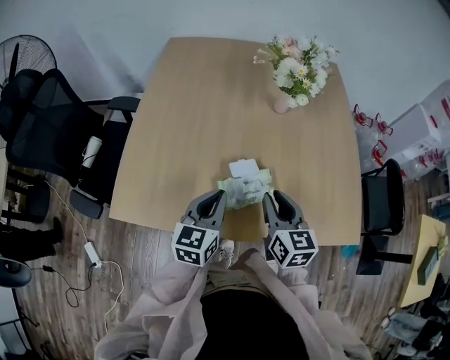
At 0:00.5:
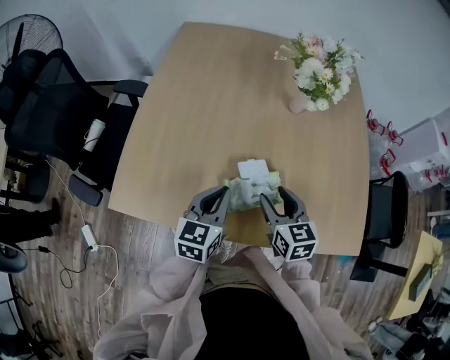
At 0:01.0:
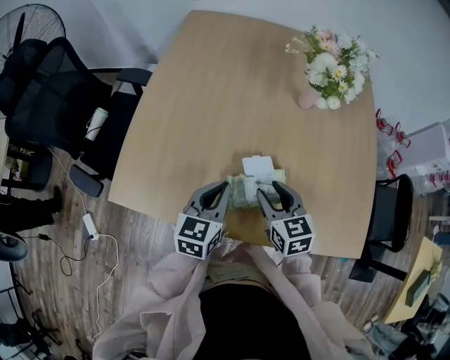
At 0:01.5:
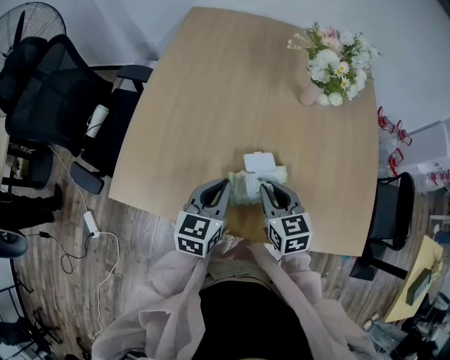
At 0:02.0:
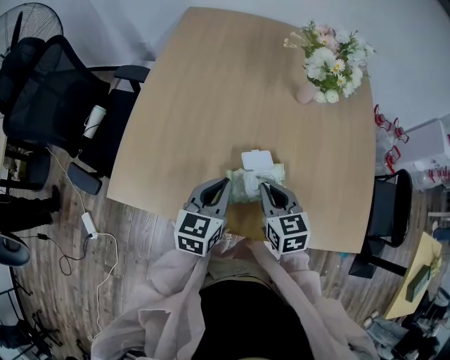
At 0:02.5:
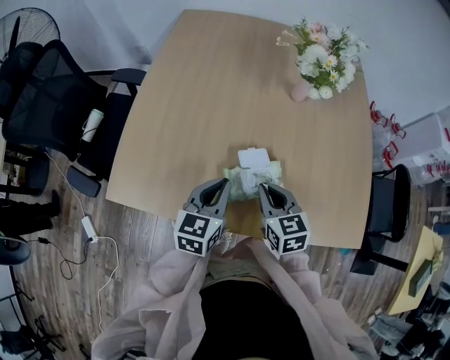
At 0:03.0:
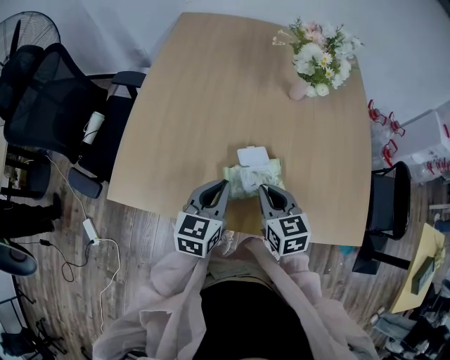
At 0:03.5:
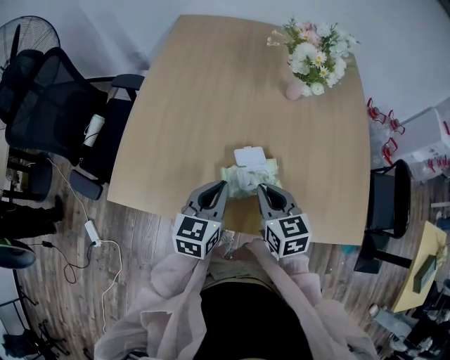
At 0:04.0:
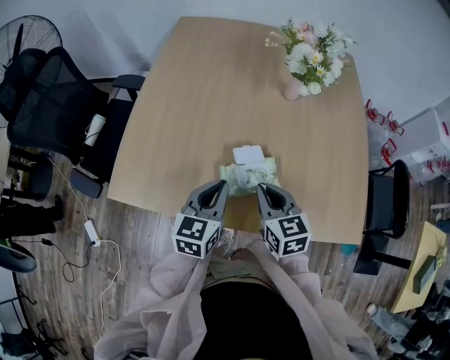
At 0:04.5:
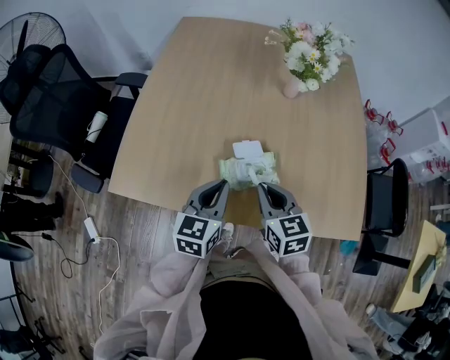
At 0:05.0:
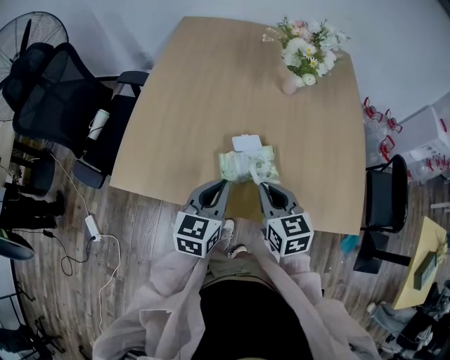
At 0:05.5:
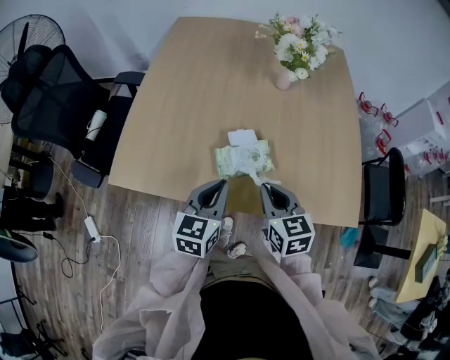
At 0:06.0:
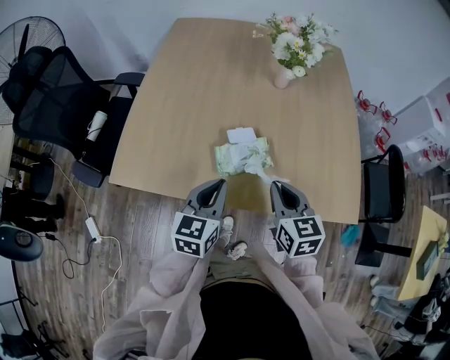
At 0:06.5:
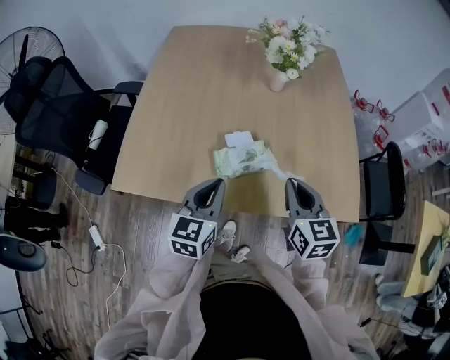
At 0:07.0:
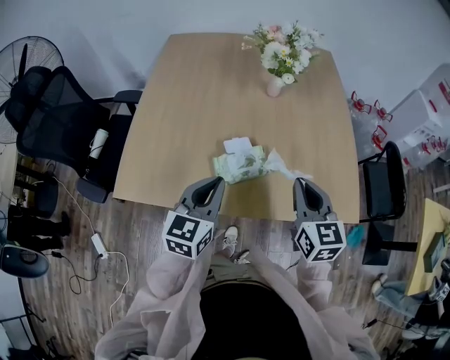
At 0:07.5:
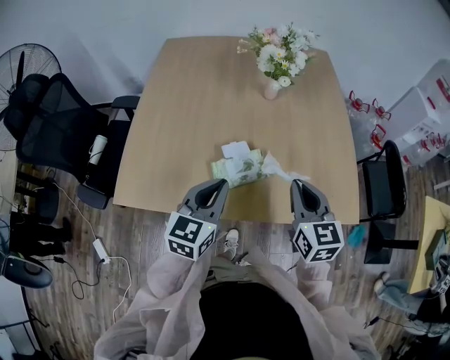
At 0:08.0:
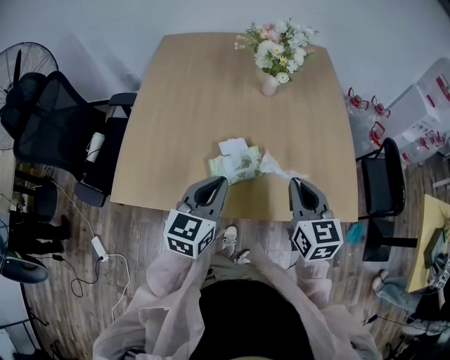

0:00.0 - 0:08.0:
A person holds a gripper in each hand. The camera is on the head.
0:00.0 - 0:02.0: The right gripper heads downward, covering some 5 cm, turns by about 20 degrees, and opens and closes again.
0:02.0 - 0:04.0: The grippers move only a little.
0:04.0 - 0:06.0: The left gripper is displaced backward by some 5 cm. Meanwhile the right gripper goes some 10 cm backward and to the right.
0:06.0 - 0:08.0: The right gripper moves upward and to the right, roughly 10 cm, while the left gripper heads upward, covering some 5 cm.

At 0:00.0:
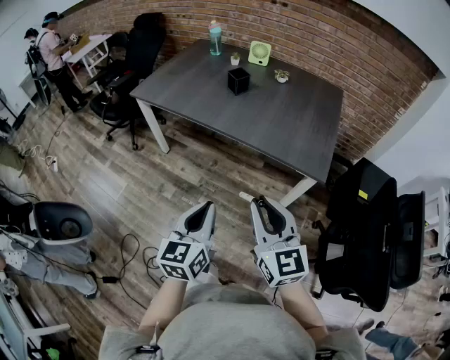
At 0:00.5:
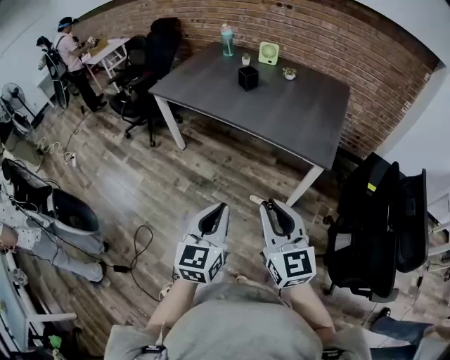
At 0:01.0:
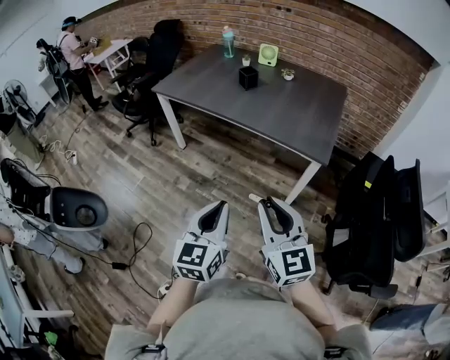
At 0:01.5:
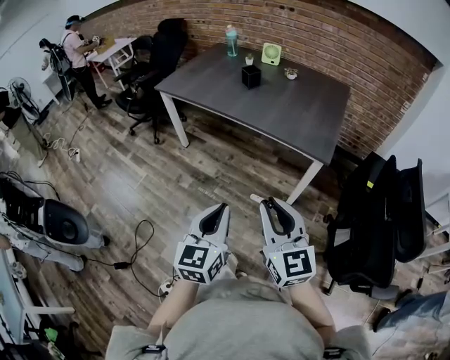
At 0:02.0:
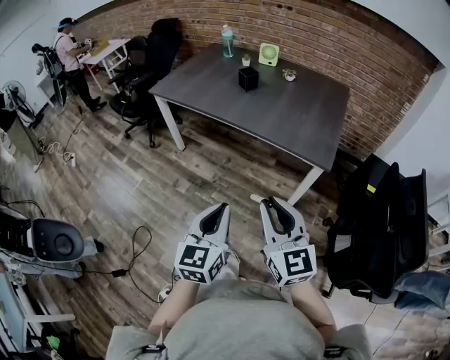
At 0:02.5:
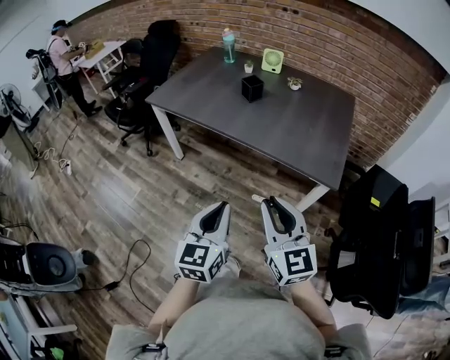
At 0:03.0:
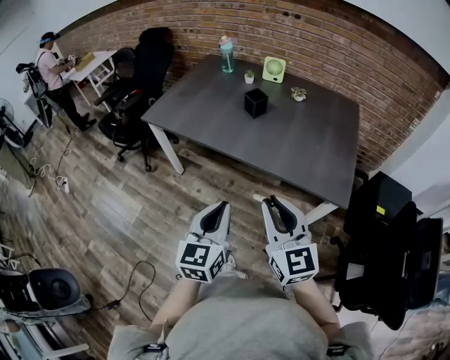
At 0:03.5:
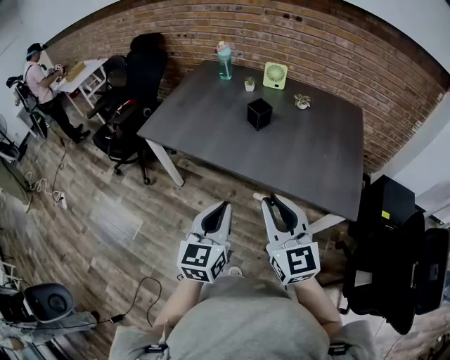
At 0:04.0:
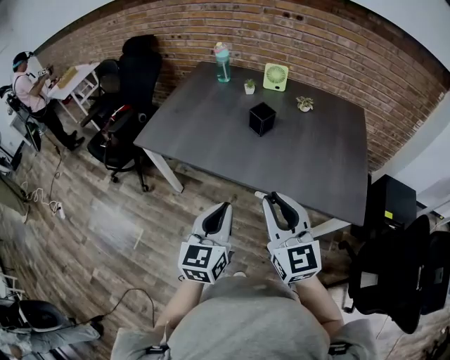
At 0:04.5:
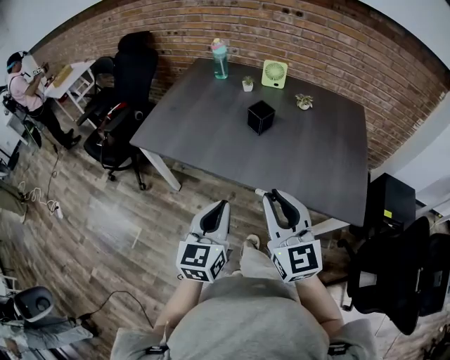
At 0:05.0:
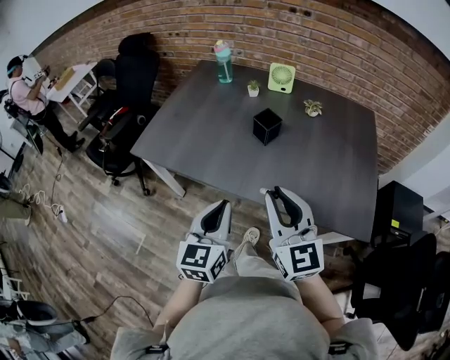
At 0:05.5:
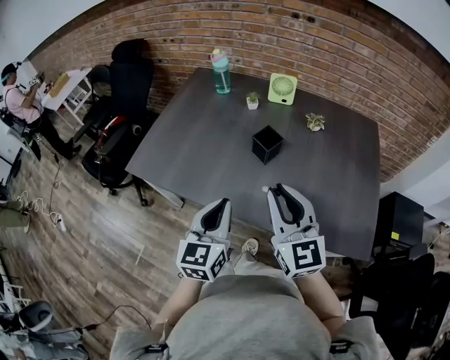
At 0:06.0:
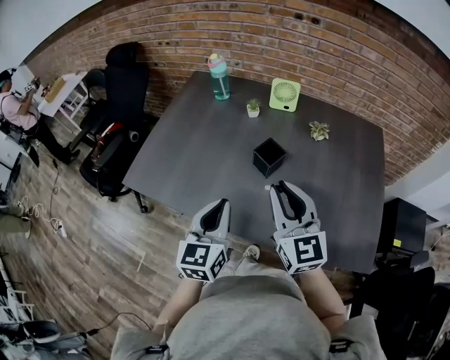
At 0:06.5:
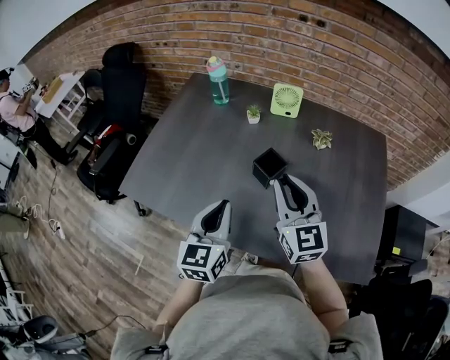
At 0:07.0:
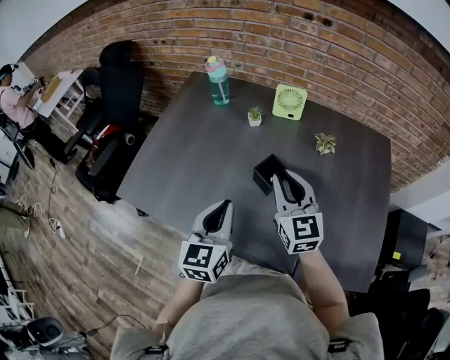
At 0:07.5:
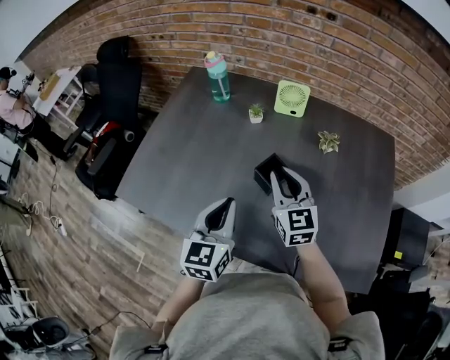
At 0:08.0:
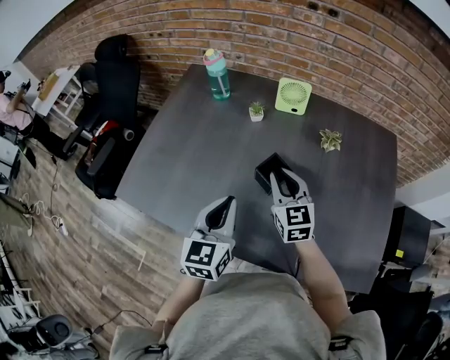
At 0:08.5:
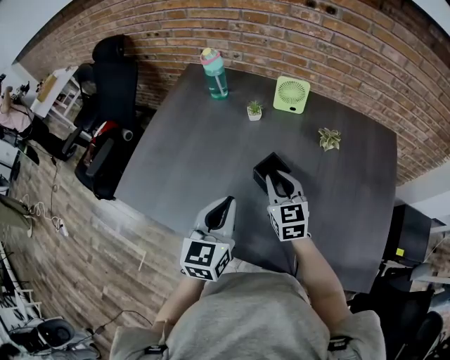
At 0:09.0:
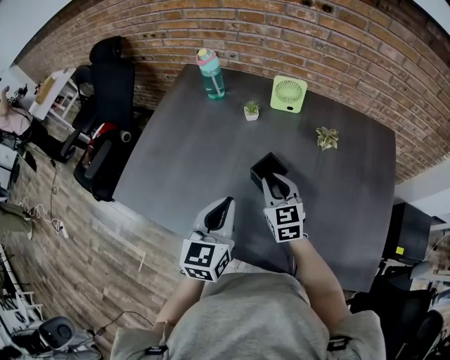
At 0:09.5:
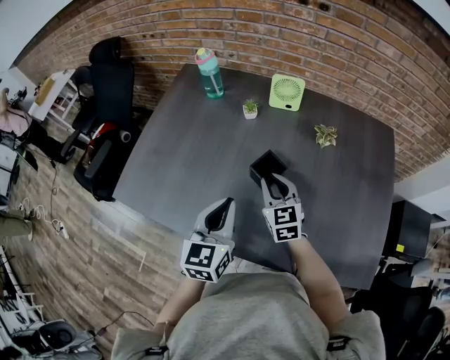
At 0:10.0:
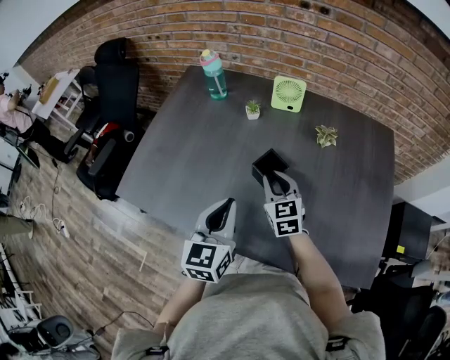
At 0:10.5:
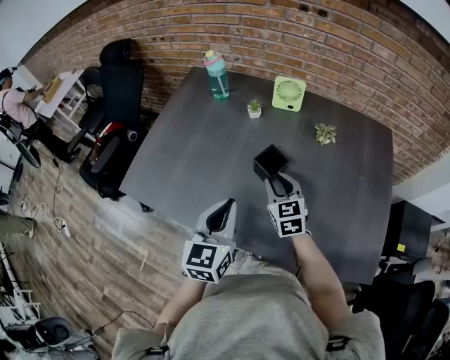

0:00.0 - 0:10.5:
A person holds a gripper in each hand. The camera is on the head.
0:00.0 - 0:02.0: Both grippers move backward, approximately 10 cm.
0:02.0 - 0:04.0: The right gripper travels forward and to the left by about 40 cm, while the left gripper goes some 35 cm forward.
0:04.0 - 0:06.5: The two grippers go some 35 cm forward.
0:06.5 - 0:08.5: The left gripper moves forward, some 5 cm, while the right gripper is displaced downward and forward by some 20 cm.
0:08.5 - 0:10.5: The left gripper shifts some 5 cm backward.

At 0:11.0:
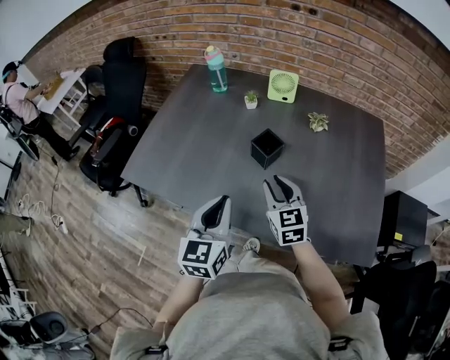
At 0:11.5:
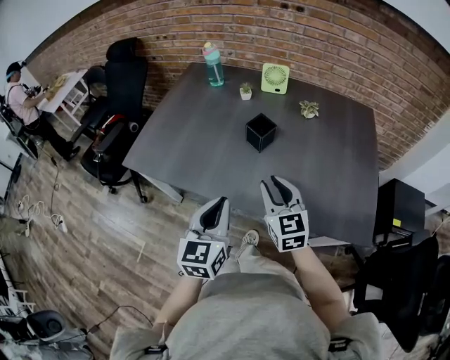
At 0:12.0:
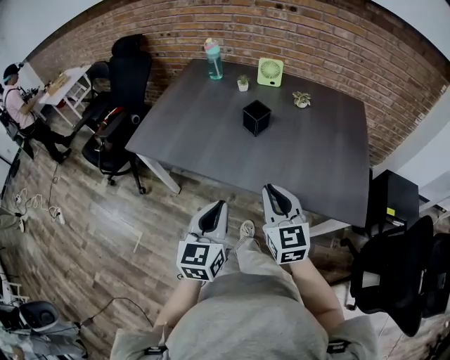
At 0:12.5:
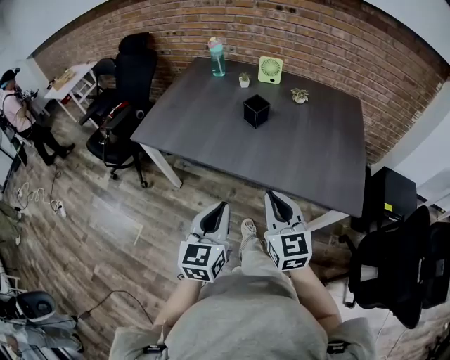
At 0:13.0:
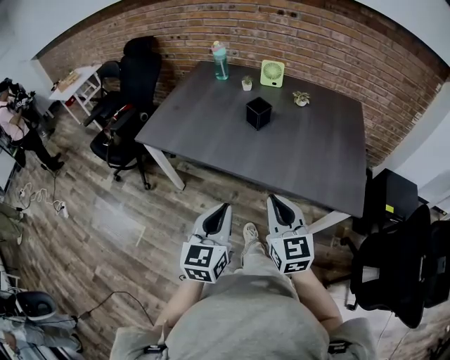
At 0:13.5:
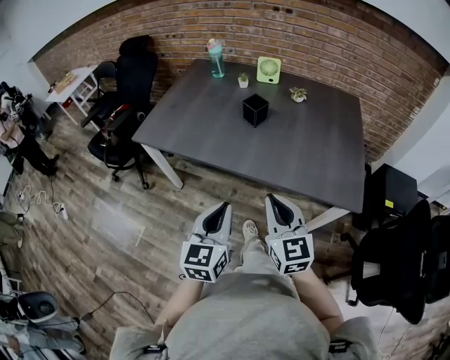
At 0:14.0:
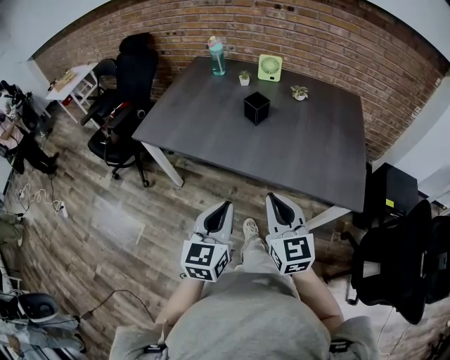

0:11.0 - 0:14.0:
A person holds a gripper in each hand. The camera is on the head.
0:11.0 - 0:12.5: Both grippers travel together backward, about 30 cm. The right gripper closes.
0:12.5 - 0:14.0: The grippers make only small movements.

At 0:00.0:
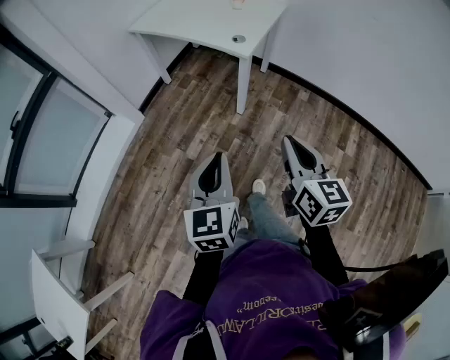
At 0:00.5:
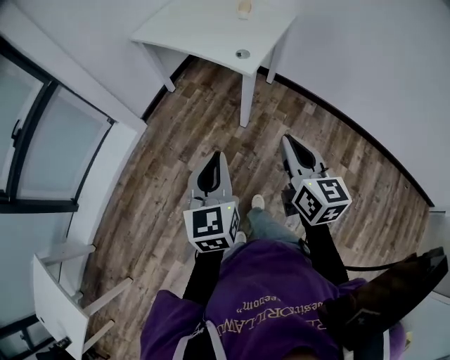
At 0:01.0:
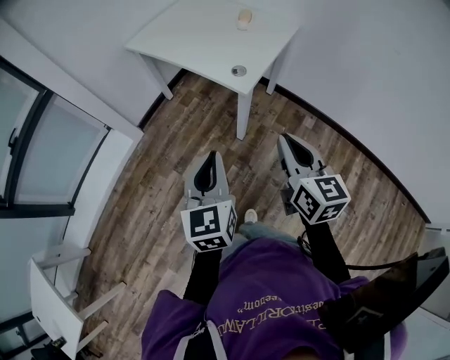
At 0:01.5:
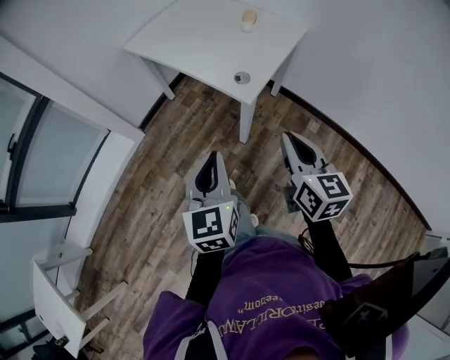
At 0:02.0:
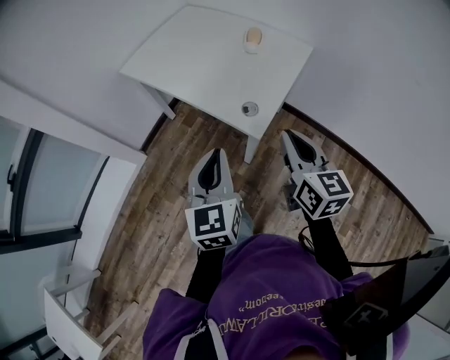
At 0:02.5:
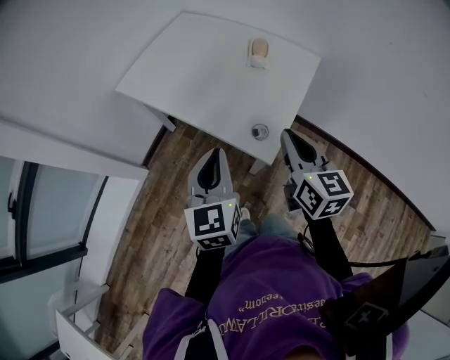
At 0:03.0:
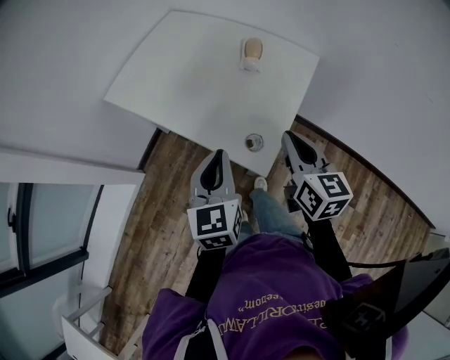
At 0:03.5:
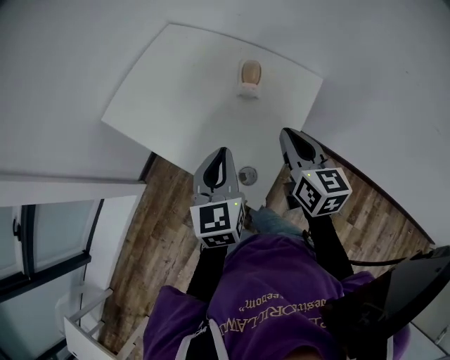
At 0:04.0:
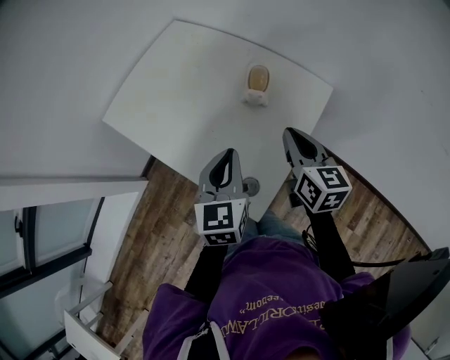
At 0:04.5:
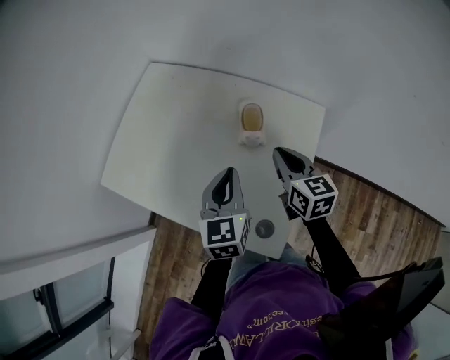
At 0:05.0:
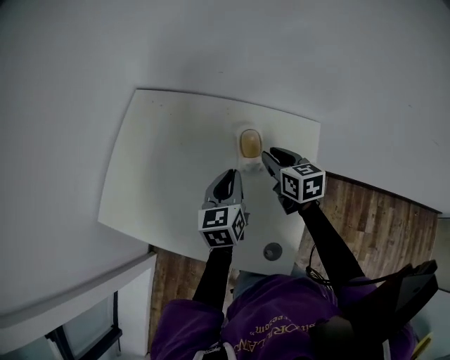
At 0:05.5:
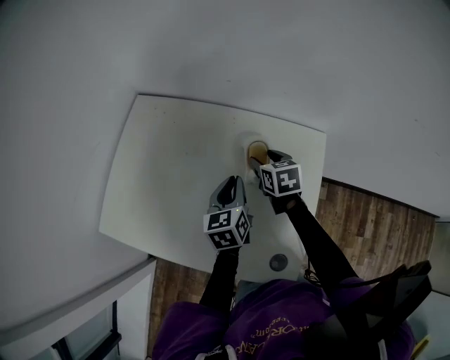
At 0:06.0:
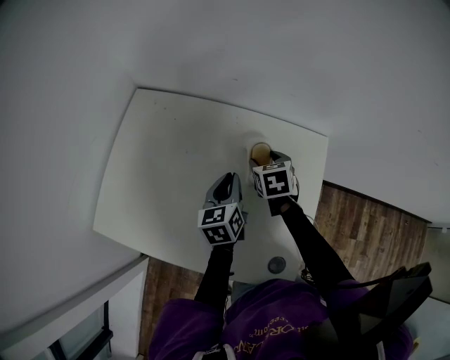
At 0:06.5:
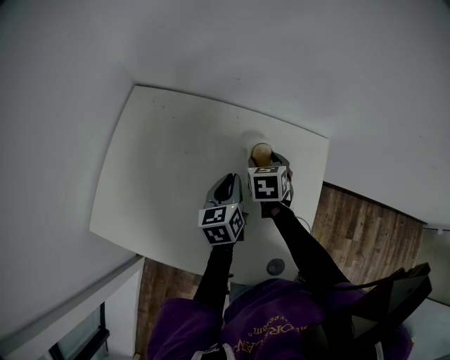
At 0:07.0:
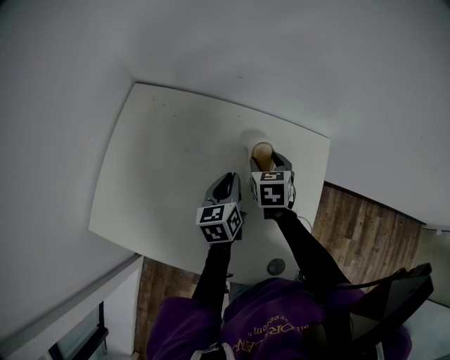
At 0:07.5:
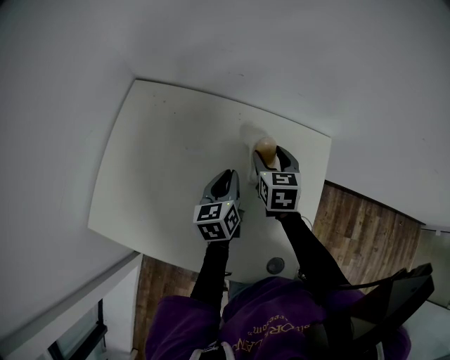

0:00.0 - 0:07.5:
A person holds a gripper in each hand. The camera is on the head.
0:00.0 - 0:02.0: Both grippers move forward, roughly 40 cm.
0:02.0 - 0:04.0: Both grippers move forward, about 30 cm.
0:04.0 - 0:05.5: The grippers both shift forward and downward by some 25 cm. The left gripper swivels approximately 20 degrees, while the right gripper swivels about 30 degrees, and opens its fingers.
0:05.5 - 0:07.5: The left gripper shifts by some 5 cm.
